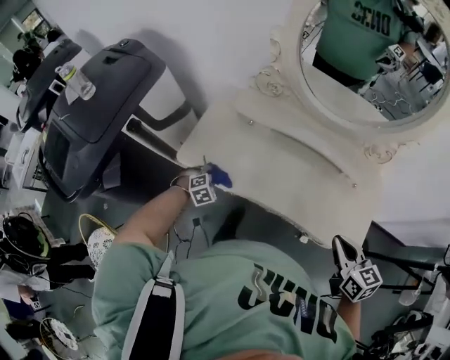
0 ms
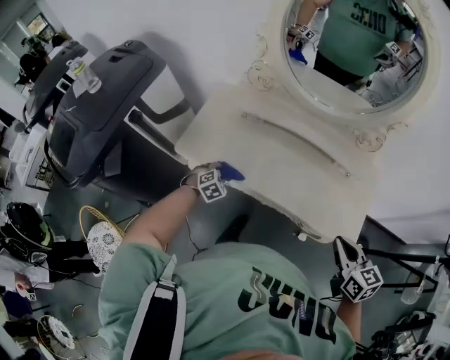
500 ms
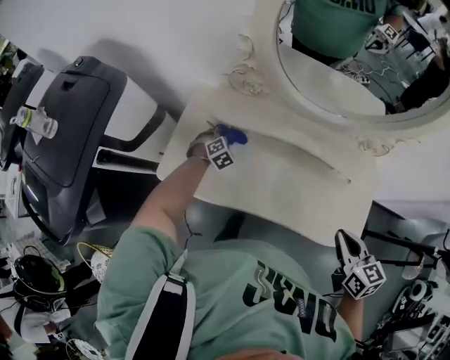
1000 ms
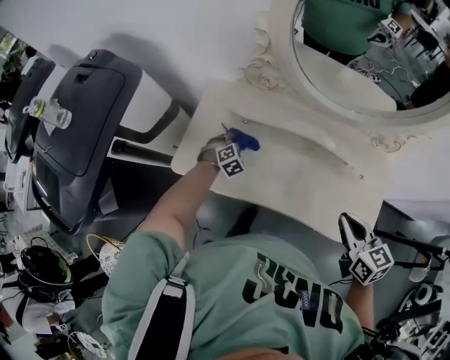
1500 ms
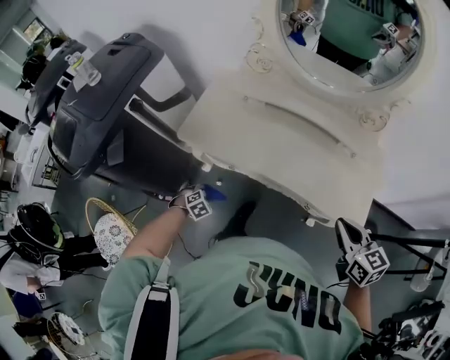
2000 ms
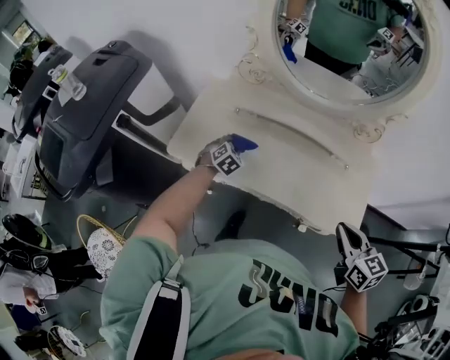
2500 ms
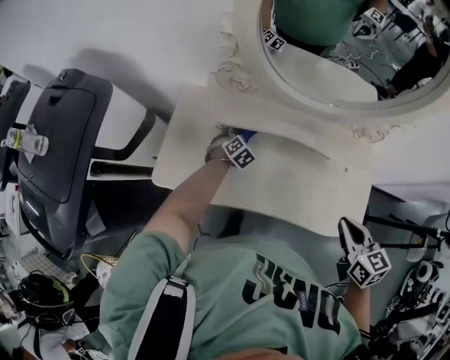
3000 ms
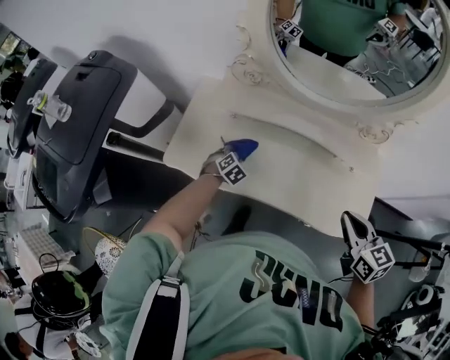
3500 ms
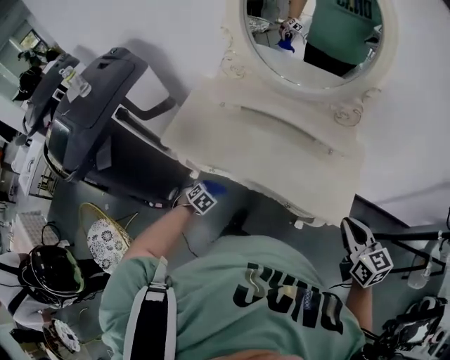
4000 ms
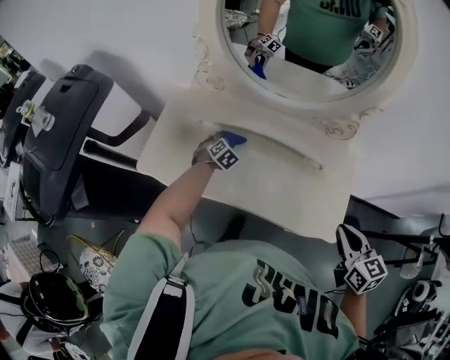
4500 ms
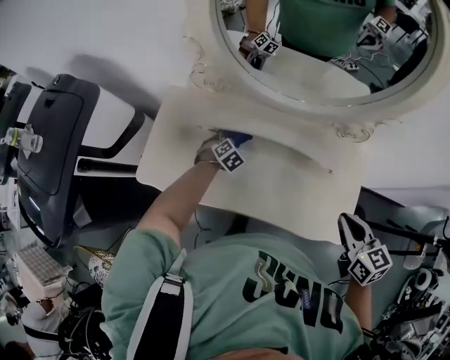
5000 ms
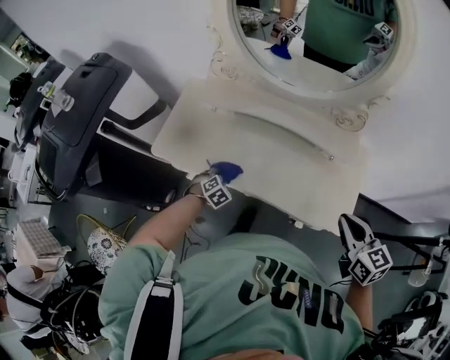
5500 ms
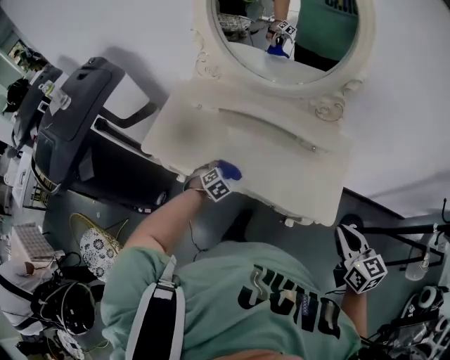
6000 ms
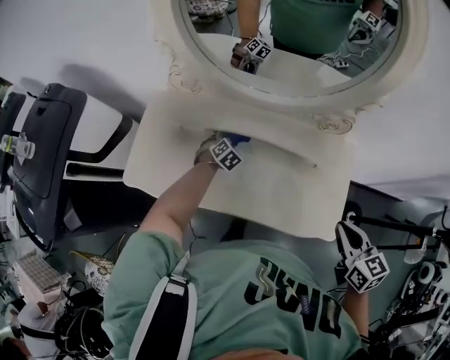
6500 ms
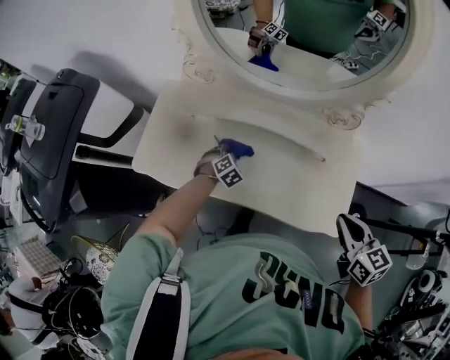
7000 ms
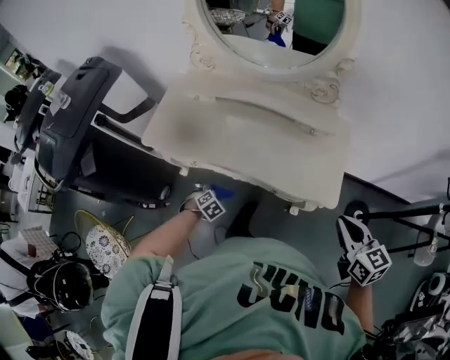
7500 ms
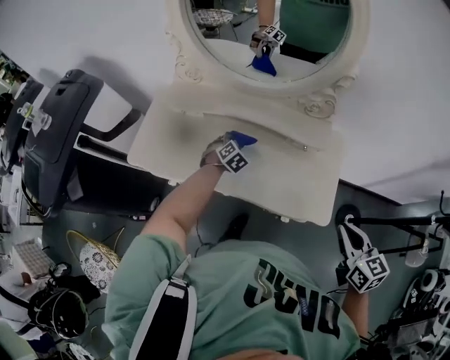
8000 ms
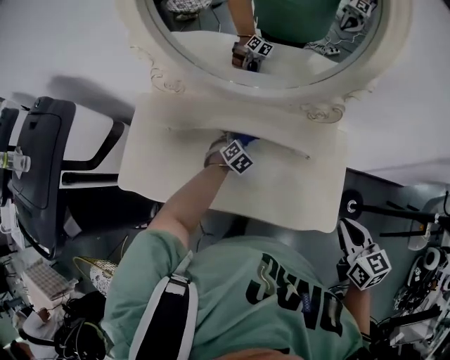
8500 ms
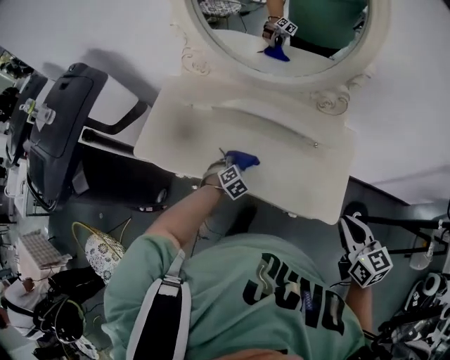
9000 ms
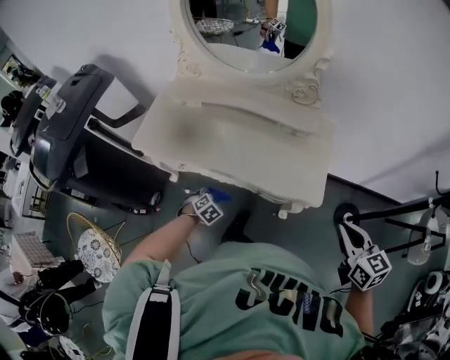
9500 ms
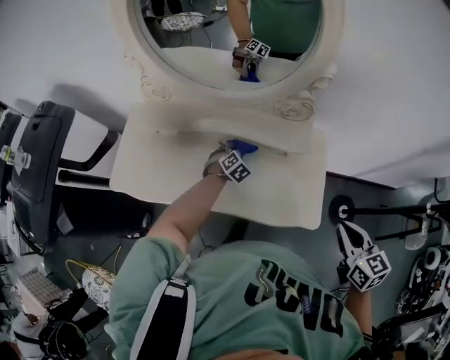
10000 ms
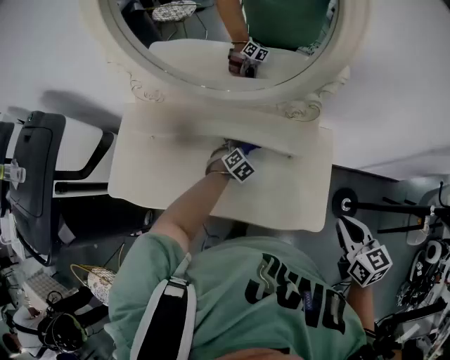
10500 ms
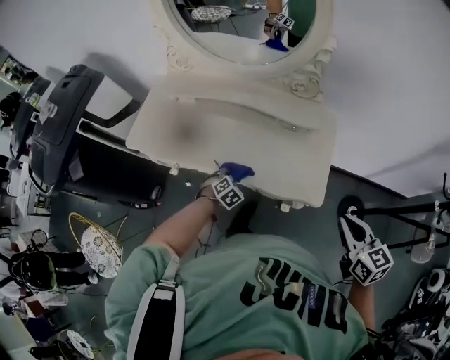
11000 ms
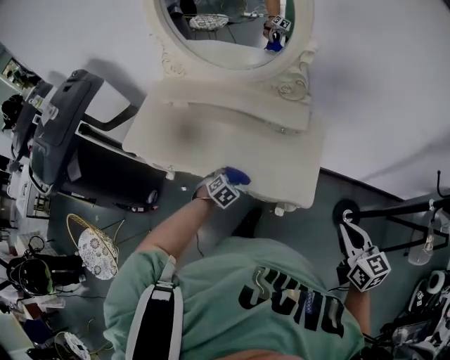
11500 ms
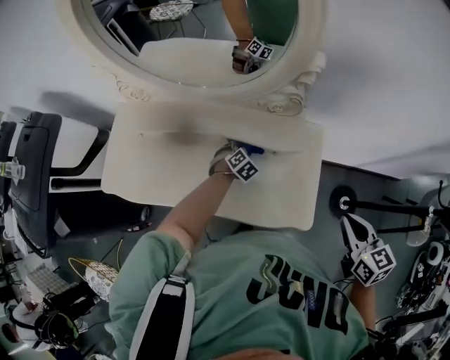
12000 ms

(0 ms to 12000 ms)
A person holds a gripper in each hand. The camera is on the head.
0 ms - 2000 ms: The right gripper ends up approximately 10 cm from where it was, while the left gripper ends up roughly 20 cm from where it was.
2000 ms - 4000 ms: The right gripper shifts by about 10 cm.
4000 ms - 6000 ms: The left gripper goes some 15 cm to the right, and travels forward and back again, some 35 cm each way; the right gripper is displaced to the right by approximately 5 cm, and travels forward and back again, roughly 20 cm each way.
6000 ms - 8000 ms: The left gripper travels downward and back again, approximately 5 cm each way.
8000 ms - 10000 ms: The right gripper moves forward and backward over roughly 20 cm, changing direction 2 times. The left gripper moves forward and backward over approximately 40 cm, changing direction 2 times.
10000 ms - 12000 ms: The left gripper heads to the right, covering approximately 10 cm, and moves about 25 cm backward and comes back, while the right gripper swings forward and backward, approximately 20 cm each way, with 2 reversals.

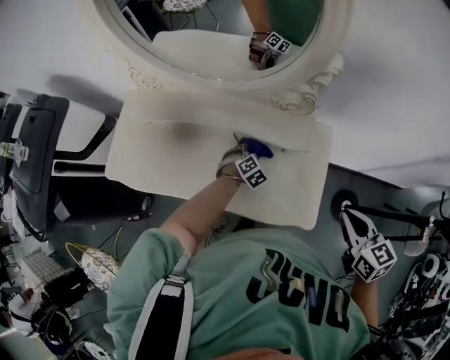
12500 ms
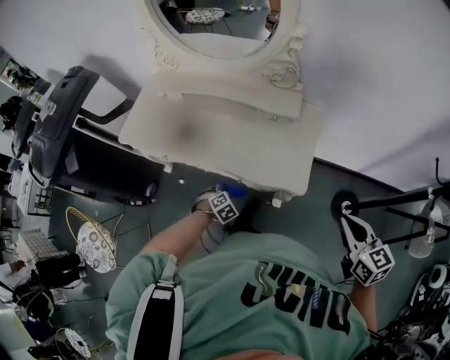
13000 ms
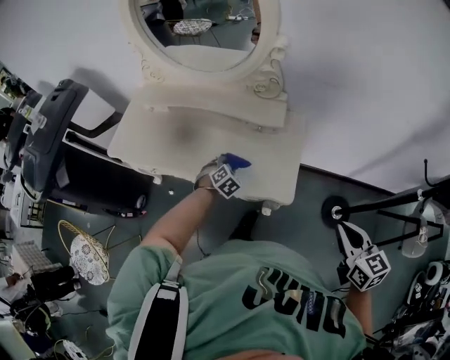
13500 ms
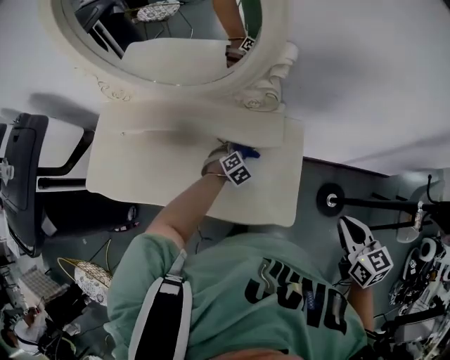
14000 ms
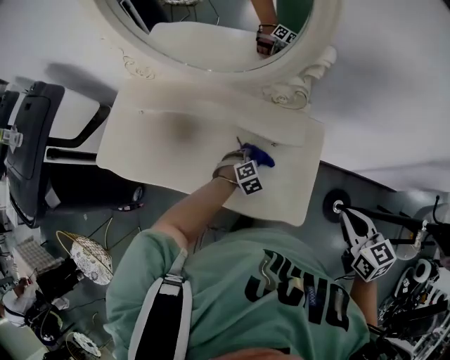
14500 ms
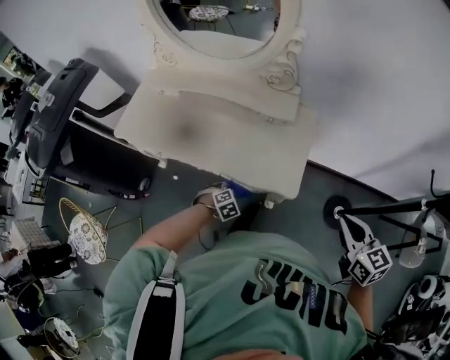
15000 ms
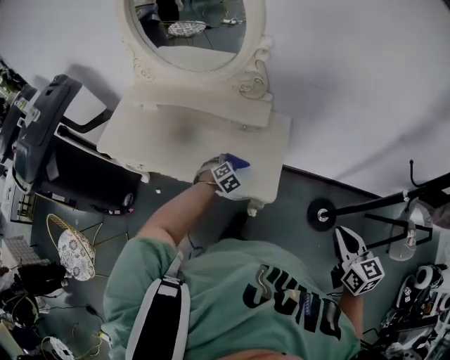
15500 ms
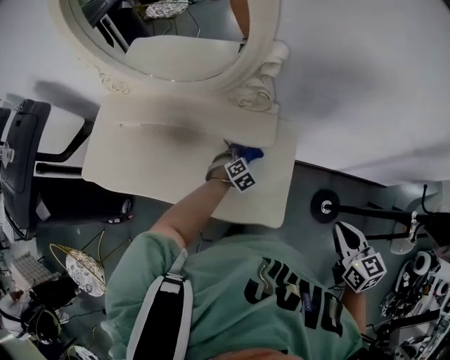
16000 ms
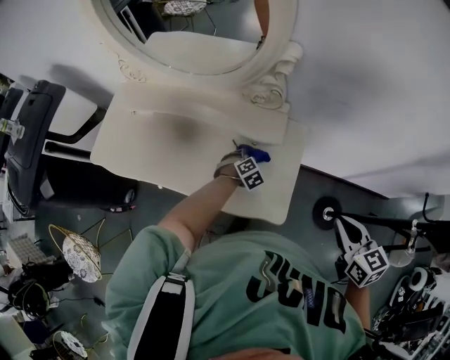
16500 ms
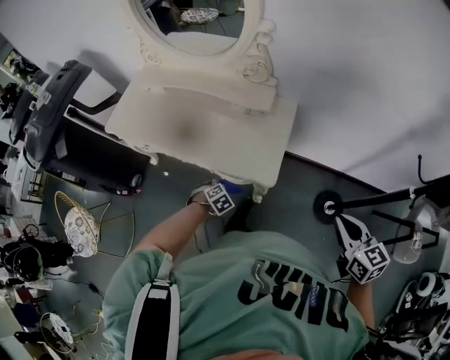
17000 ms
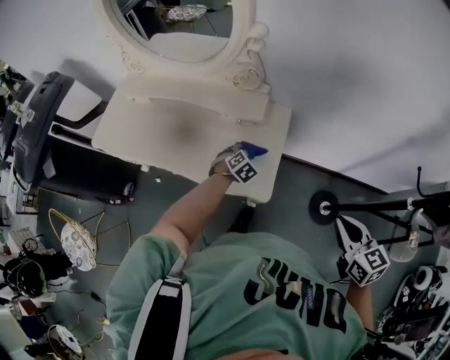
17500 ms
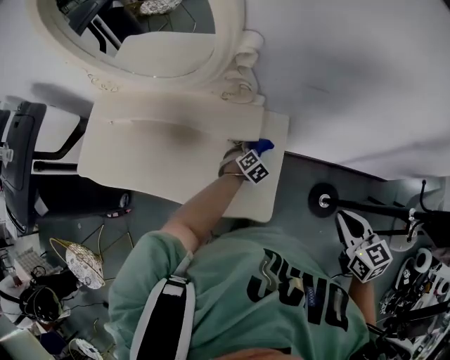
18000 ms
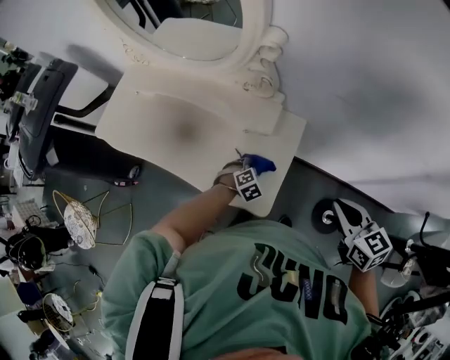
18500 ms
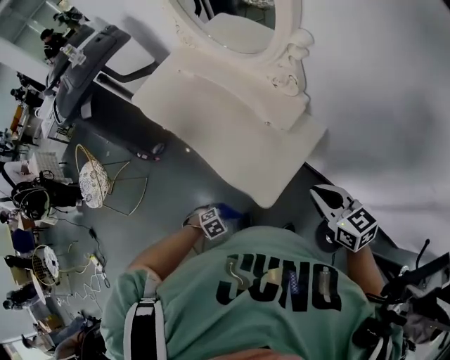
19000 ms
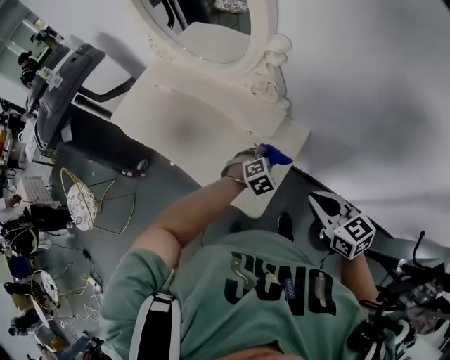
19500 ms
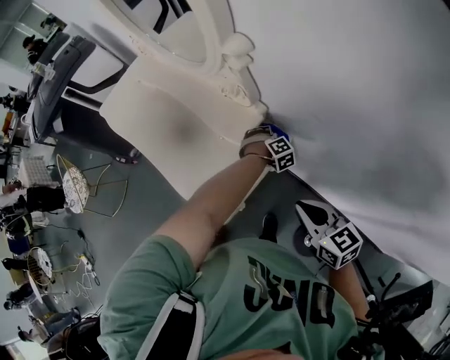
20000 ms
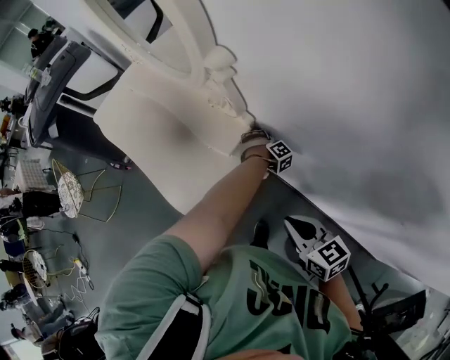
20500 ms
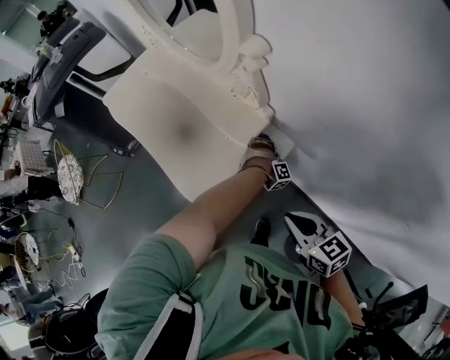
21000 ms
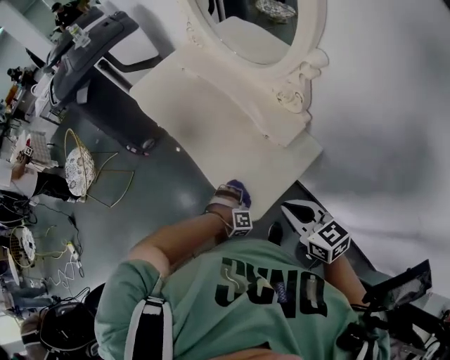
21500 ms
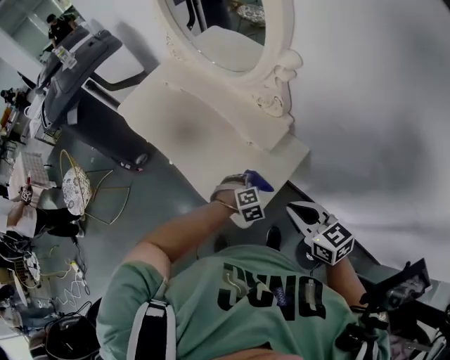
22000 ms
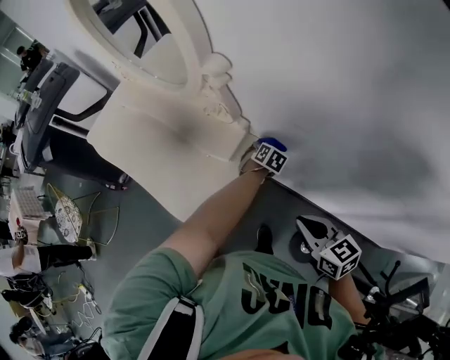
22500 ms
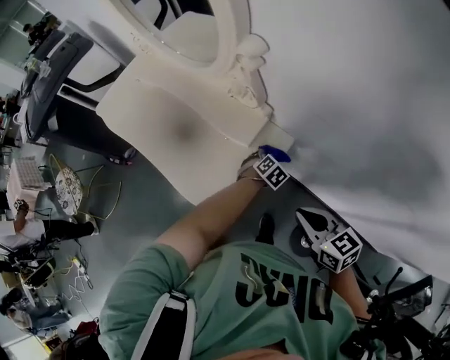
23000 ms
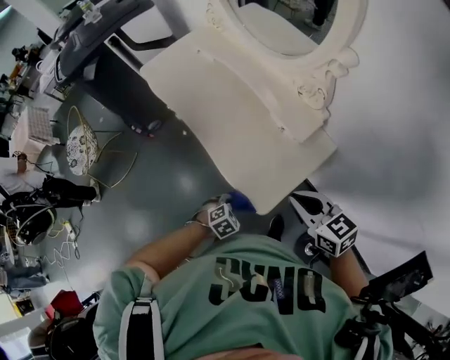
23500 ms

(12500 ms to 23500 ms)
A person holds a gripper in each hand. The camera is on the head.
12500 ms - 14500 ms: The left gripper goes upward and returns, approximately 5 cm each way.
18000 ms - 20000 ms: The left gripper travels upward and back again, some 10 cm each way, and changes its angle by roughly 30 degrees, while the right gripper moves about 15 cm, and changes its angle by some 40 degrees.
20000 ms - 21500 ms: The right gripper shifts some 20 cm to the left and forward, while the left gripper shifts some 35 cm to the left, and changes its angle by some 30 degrees.
21500 ms - 23500 ms: The left gripper goes upward and returns, some 10 cm each way, and twists some 50 degrees counterclockwise, seen from behind.

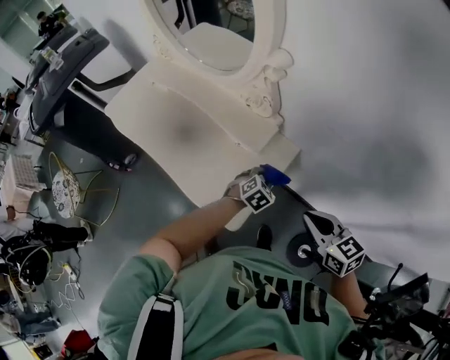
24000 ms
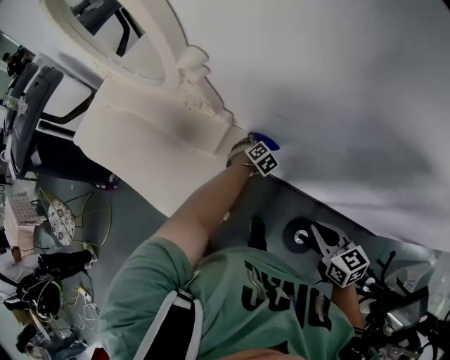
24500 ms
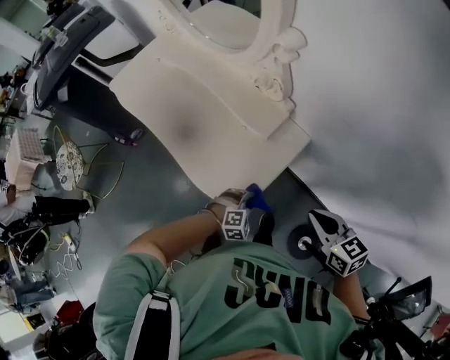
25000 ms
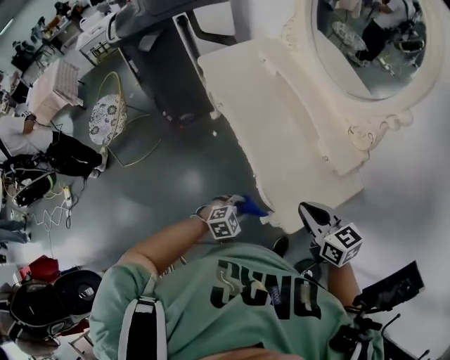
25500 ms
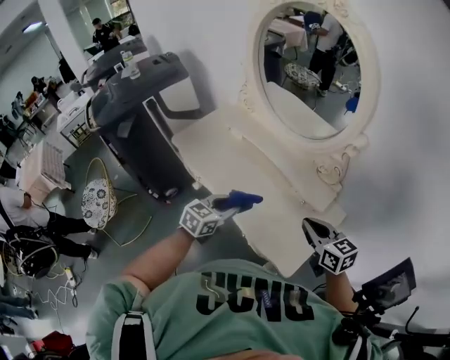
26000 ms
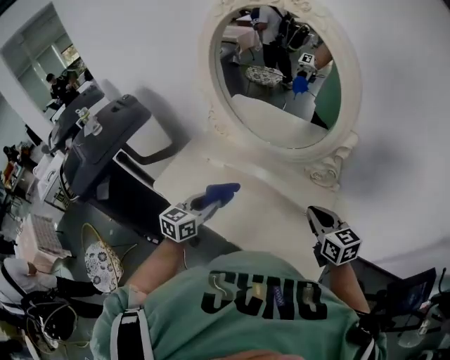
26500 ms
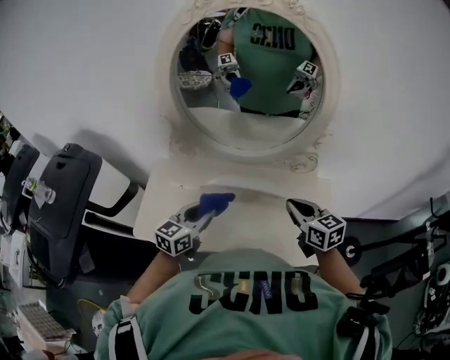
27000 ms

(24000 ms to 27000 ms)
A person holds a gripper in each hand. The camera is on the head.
24000 ms - 25500 ms: The left gripper goes some 35 cm to the left and backward. Meanwhile the right gripper travels to the left by roughly 30 cm, and changes its angle by roughly 20 degrees.
25500 ms - 27000 ms: The right gripper ends up about 25 cm from where it was, and changes its angle by roughly 60 degrees. Meanwhile the left gripper changes place by approximately 50 cm, and tilts its fingers approximately 40 degrees upward.
